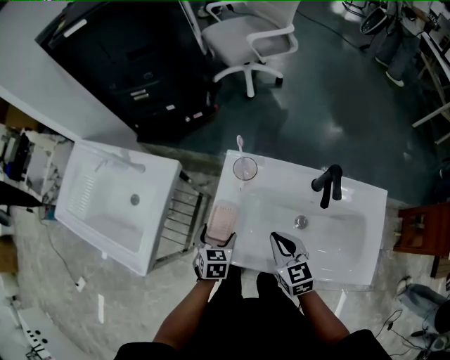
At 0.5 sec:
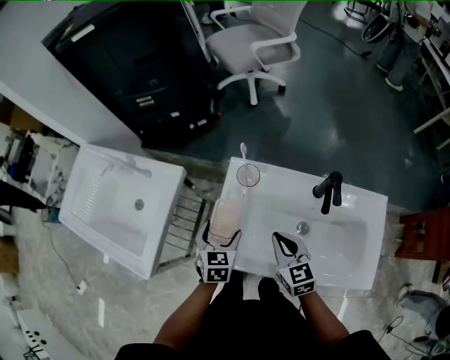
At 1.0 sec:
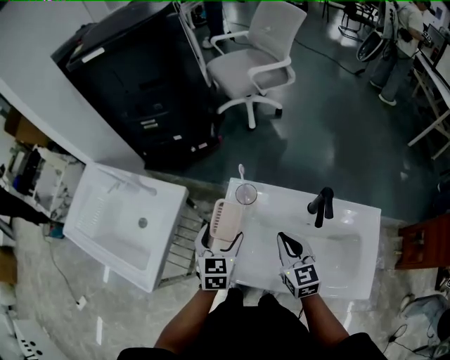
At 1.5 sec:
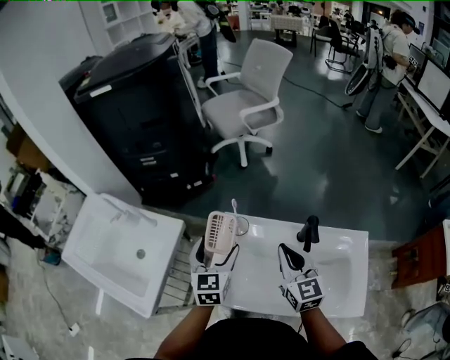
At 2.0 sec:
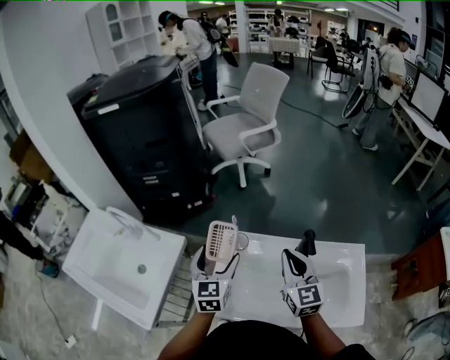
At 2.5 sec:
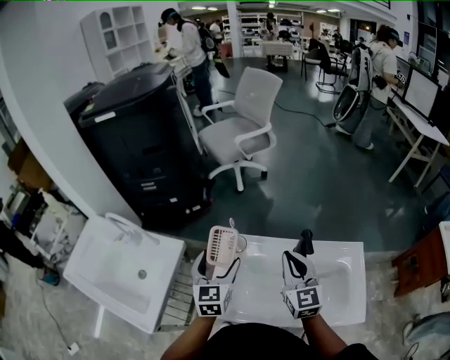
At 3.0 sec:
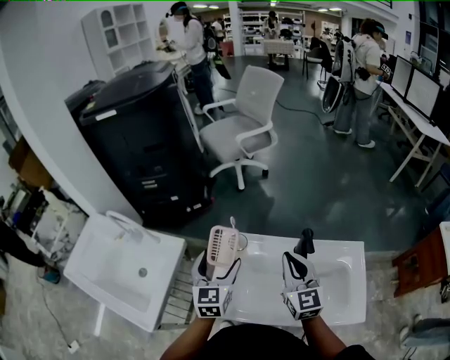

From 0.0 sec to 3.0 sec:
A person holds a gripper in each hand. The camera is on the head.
From 0.0 sec to 1.5 sec: The right gripper travels upward and forward by roughly 15 cm, and changes its angle by roughly 20 degrees; the left gripper is displaced upward by some 20 cm, and points its fingers roughly 30 degrees further upward.
From 1.5 sec to 3.0 sec: There are only small adjustments of the grippers.

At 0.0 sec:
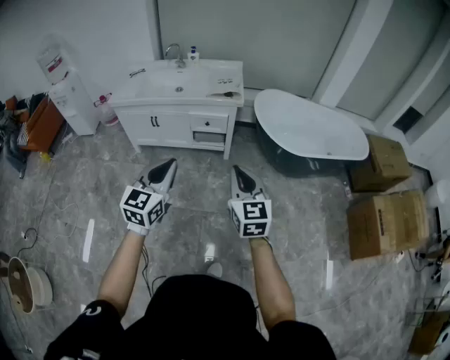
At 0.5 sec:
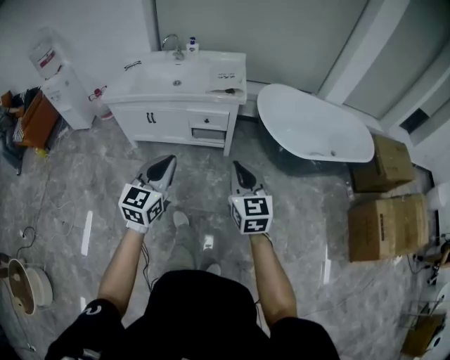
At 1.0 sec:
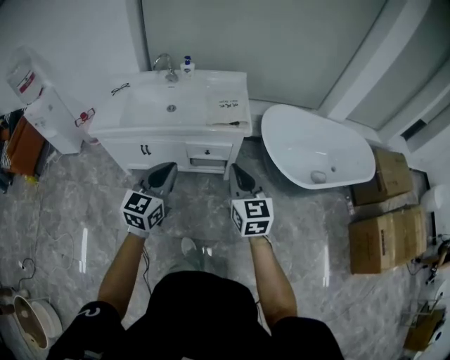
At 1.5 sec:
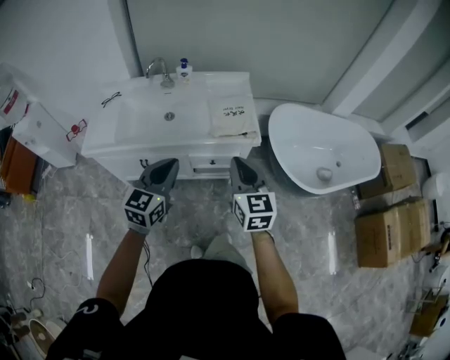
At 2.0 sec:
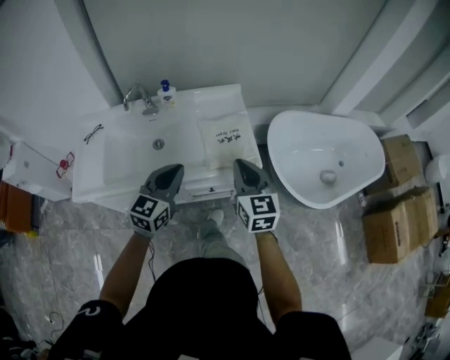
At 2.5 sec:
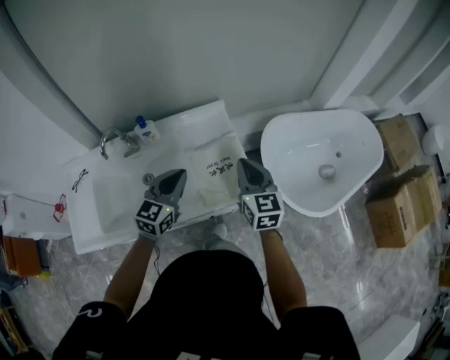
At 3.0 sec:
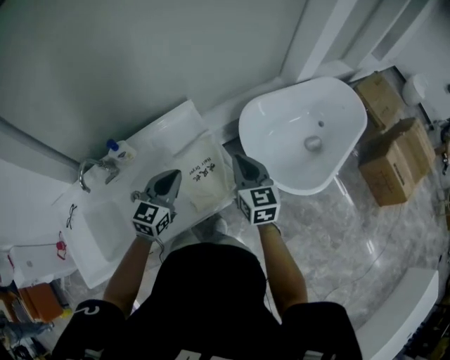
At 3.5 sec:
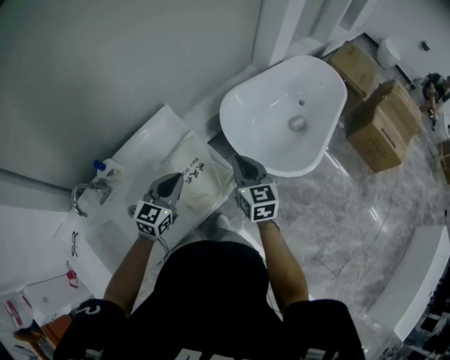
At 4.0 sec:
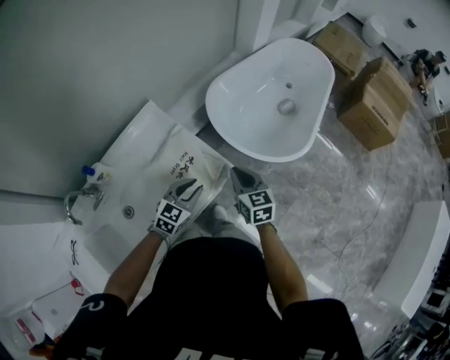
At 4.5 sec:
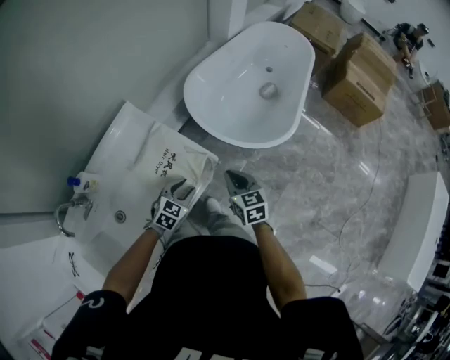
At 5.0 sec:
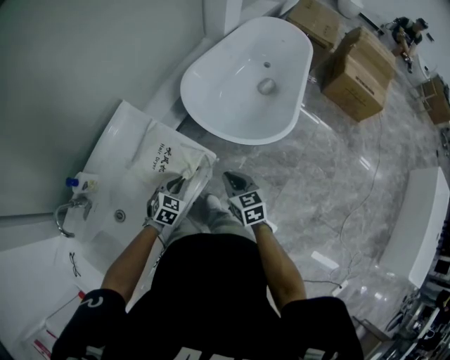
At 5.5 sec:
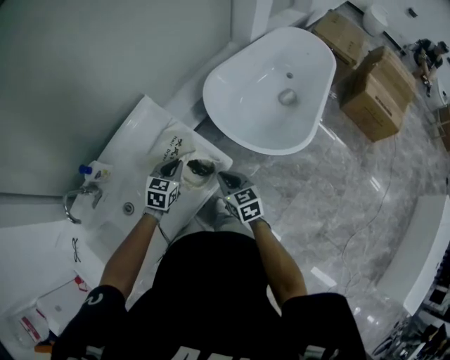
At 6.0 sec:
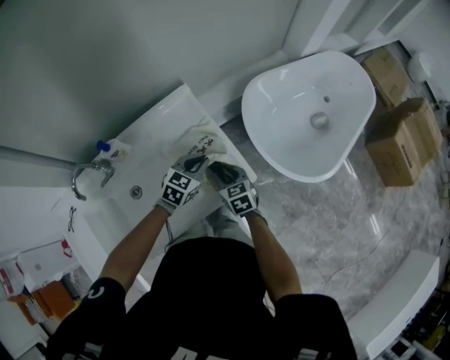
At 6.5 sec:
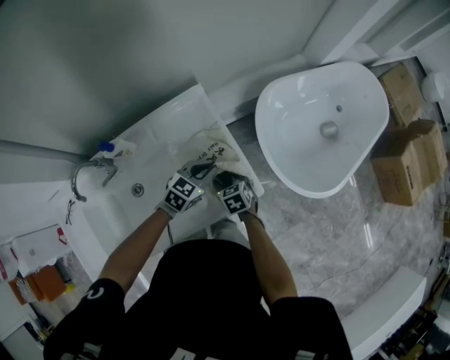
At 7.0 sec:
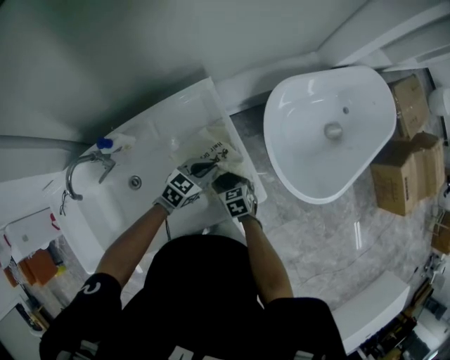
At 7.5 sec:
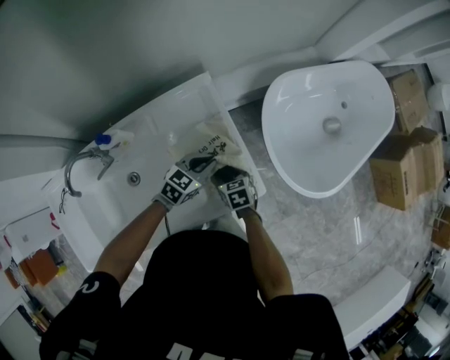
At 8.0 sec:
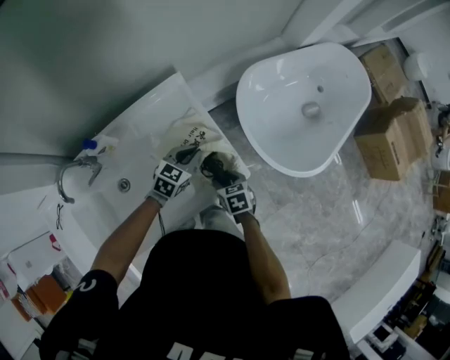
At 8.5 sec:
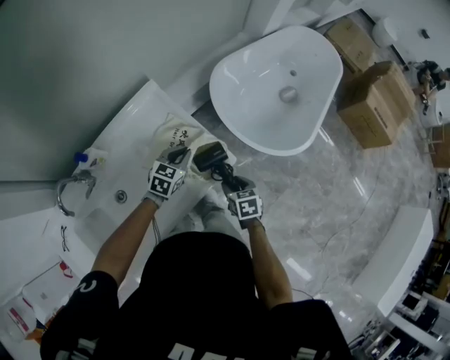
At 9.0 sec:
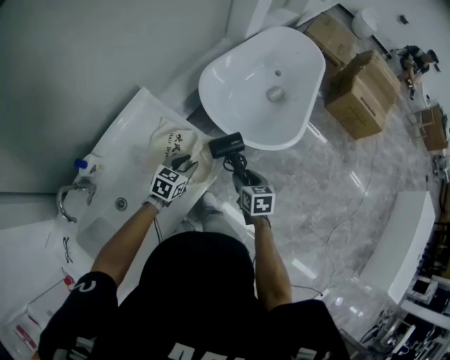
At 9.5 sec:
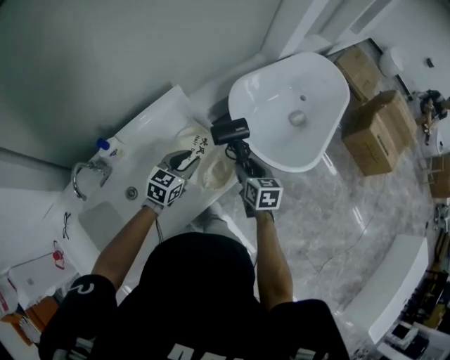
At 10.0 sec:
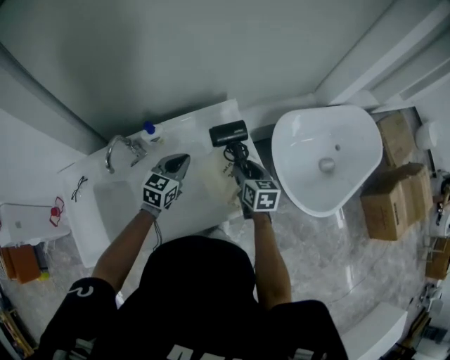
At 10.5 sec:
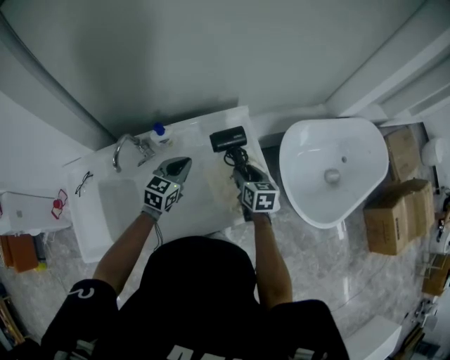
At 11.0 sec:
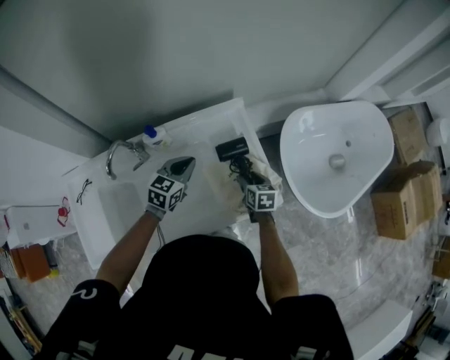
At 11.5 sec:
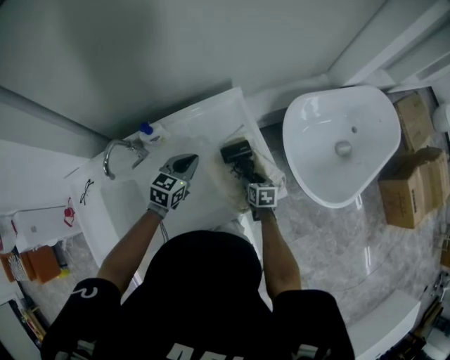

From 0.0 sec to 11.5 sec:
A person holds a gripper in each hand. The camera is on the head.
From 0.0 sec to 2.0 sec: Both grippers are carried forward, some 70 cm.
From 2.0 sec to 4.0 sec: The left gripper moves approximately 30 cm, and rotates about 50 degrees. The right gripper ends up some 20 cm from where it was, and turns by about 40 degrees.
From 4.0 sec to 6.0 sec: The right gripper travels to the left and downward by some 15 cm, swivels roughly 30 degrees, and opens. Meanwhile the left gripper travels forward and to the left by some 10 cm.
From 6.0 sec to 7.5 sec: The right gripper moves downward, some 10 cm, and turns by about 20 degrees. The left gripper moves some 5 cm.
From 7.5 sec to 9.5 sec: The left gripper travels upward by roughly 10 cm, and opens, while the right gripper travels upward by roughly 20 cm, and changes its angle by some 40 degrees.
From 9.5 sec to 11.5 sec: The right gripper moves downward, some 15 cm, and swivels some 20 degrees, while the left gripper changes place by roughly 15 cm, changes its angle by approximately 20 degrees, and closes its fingers.

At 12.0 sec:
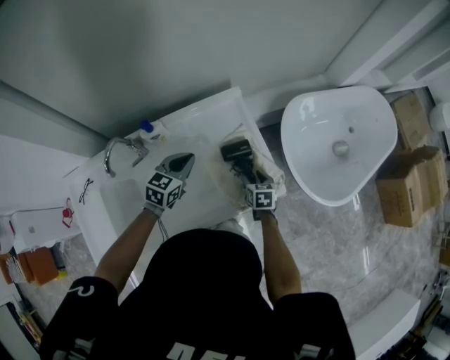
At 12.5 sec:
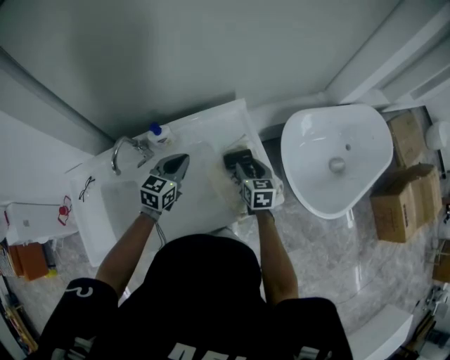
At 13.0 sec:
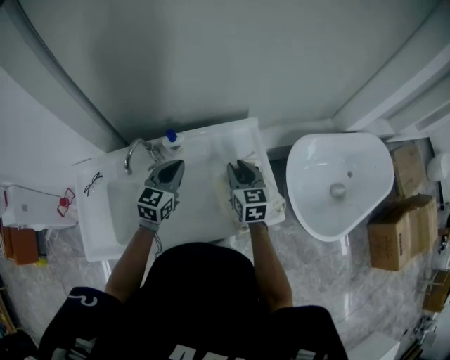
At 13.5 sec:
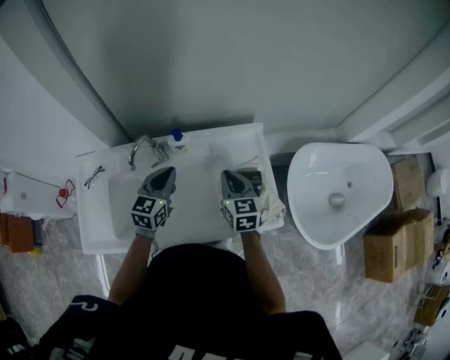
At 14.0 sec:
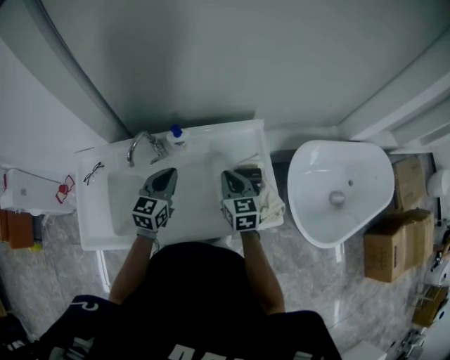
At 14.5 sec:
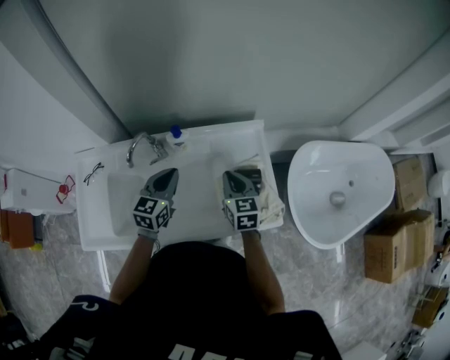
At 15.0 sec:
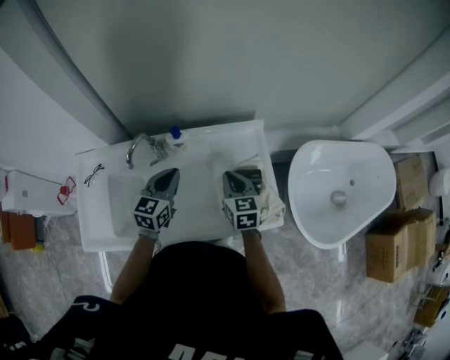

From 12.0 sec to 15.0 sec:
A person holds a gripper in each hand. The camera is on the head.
From 12.0 sec to 13.5 sec: The left gripper travels to the left and upward by some 15 cm, and swivels some 30 degrees, while the right gripper travels upward and to the left by approximately 30 cm, rotates about 30 degrees, and closes its fingers.
From 13.5 sec to 15.0 sec: There are only small adjustments of the grippers.

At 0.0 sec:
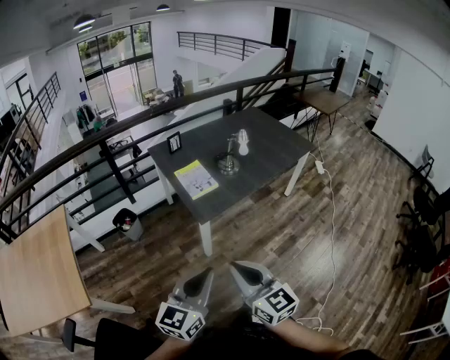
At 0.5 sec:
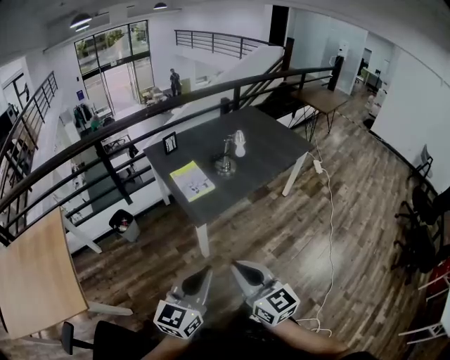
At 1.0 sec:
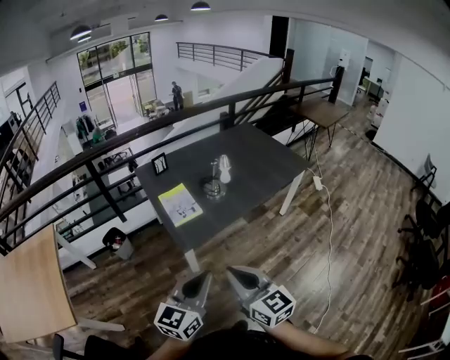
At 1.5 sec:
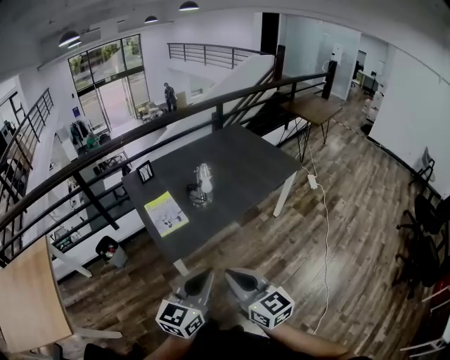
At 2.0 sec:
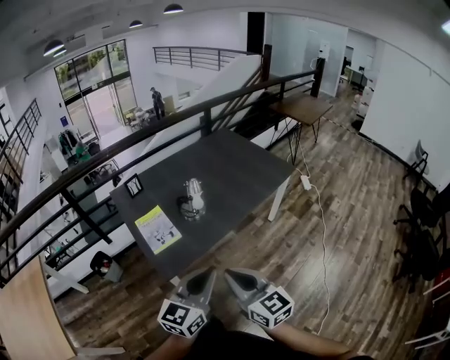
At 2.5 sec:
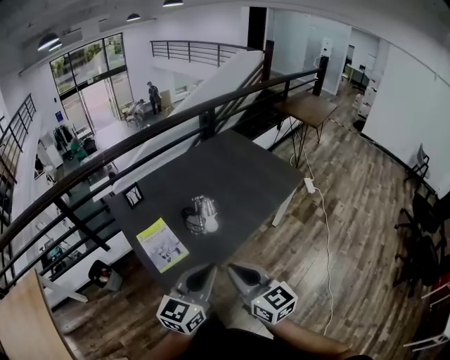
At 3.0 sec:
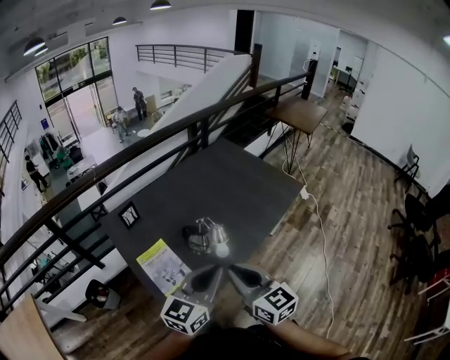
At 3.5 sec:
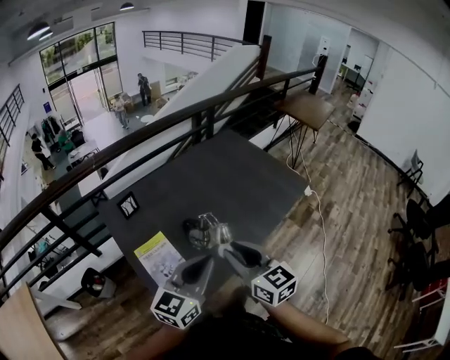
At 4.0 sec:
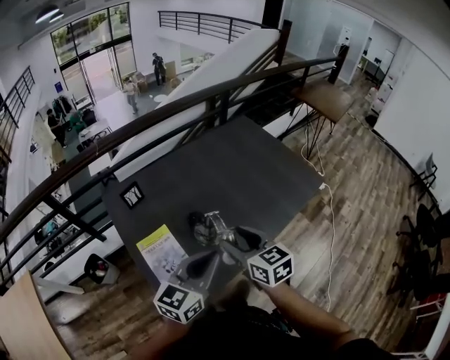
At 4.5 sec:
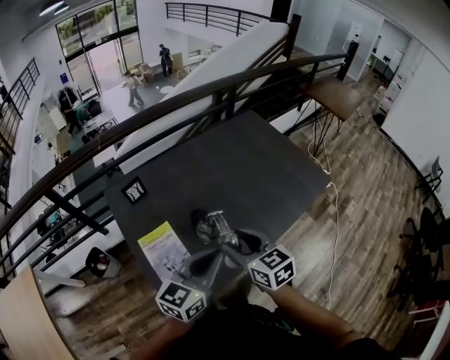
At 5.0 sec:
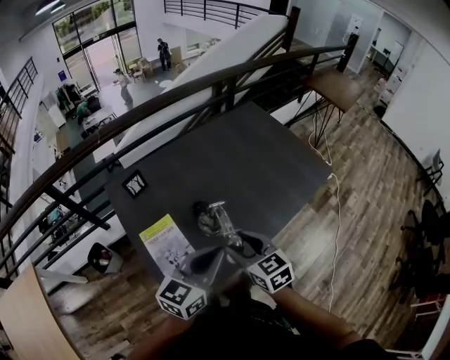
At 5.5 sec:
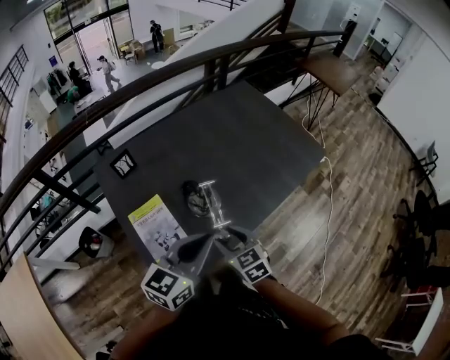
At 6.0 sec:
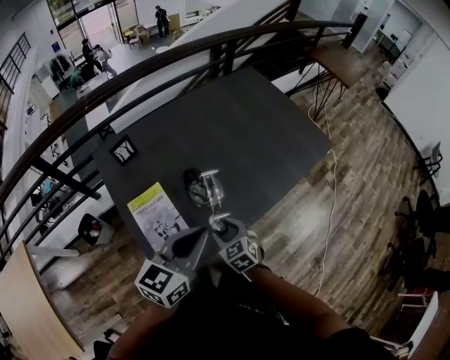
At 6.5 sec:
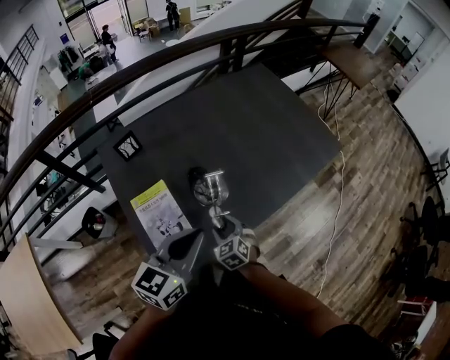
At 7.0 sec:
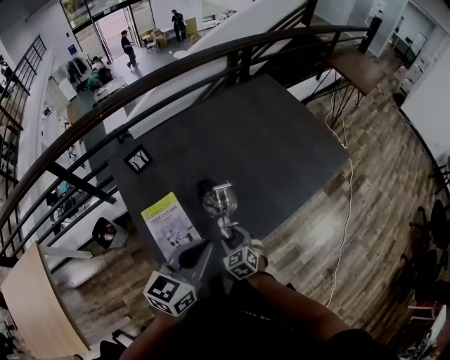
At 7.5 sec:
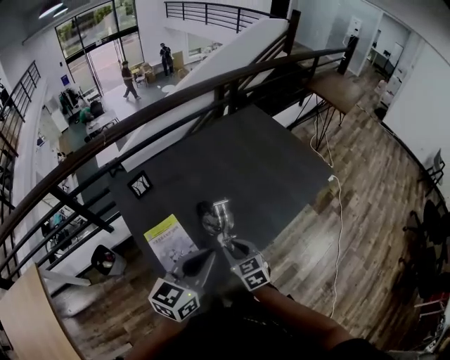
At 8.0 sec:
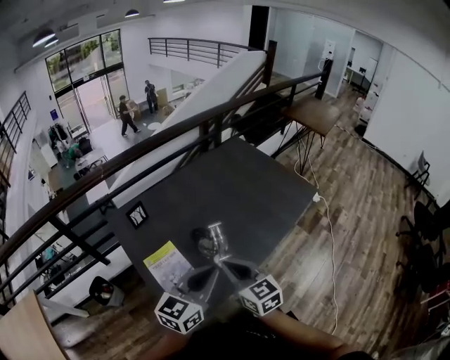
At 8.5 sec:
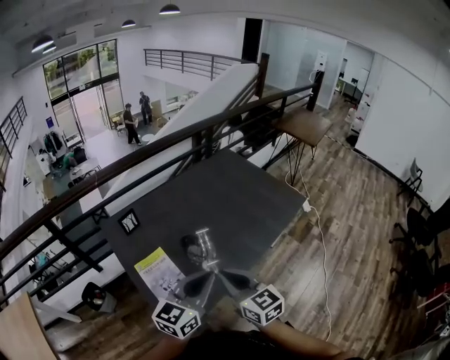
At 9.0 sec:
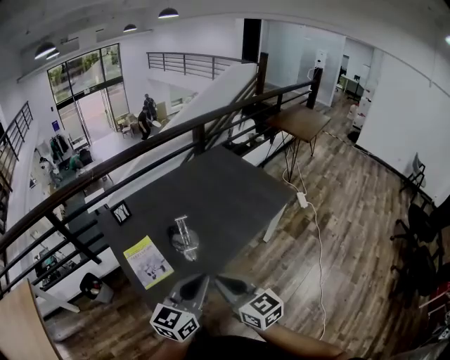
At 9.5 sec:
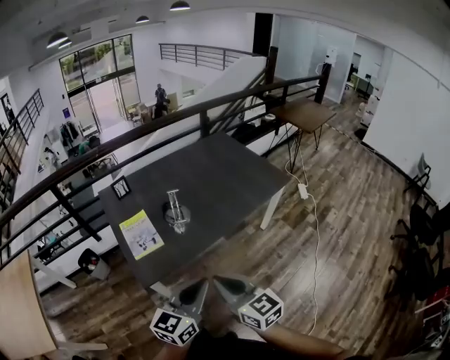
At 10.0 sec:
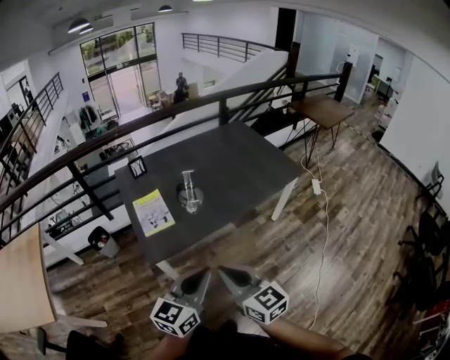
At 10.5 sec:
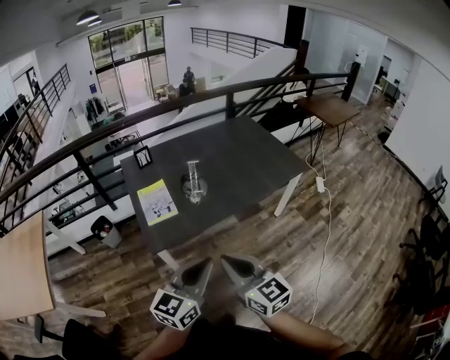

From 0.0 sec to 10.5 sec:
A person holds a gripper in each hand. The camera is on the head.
From 0.0 sec to 2.0 sec: The grippers both shift forward and to the right by about 30 cm.
From 2.0 sec to 4.0 sec: The two grippers go about 35 cm forward. The right gripper opens.
From 4.0 sec to 6.5 sec: The right gripper heads downward, covering some 25 cm, and turns by about 40 degrees.
From 6.5 sec to 8.5 sec: The right gripper moves upward, some 30 cm, tilts its fingers some 30 degrees upward, and closes its fingers; the left gripper moves upward and backward, approximately 10 cm.
From 8.5 sec to 10.5 sec: The grippers both shift backward and to the right by some 30 cm.
